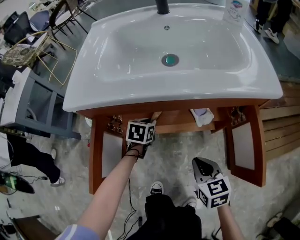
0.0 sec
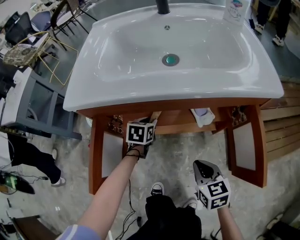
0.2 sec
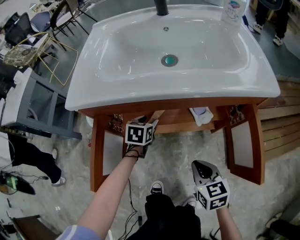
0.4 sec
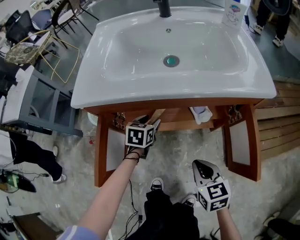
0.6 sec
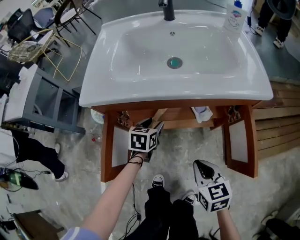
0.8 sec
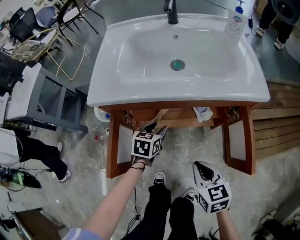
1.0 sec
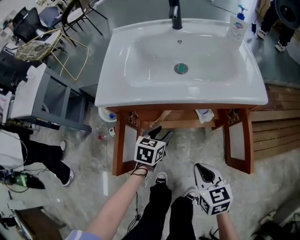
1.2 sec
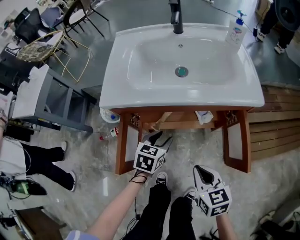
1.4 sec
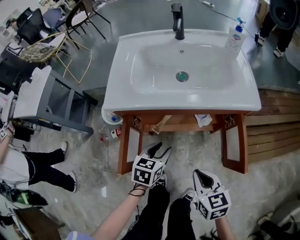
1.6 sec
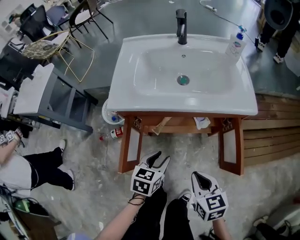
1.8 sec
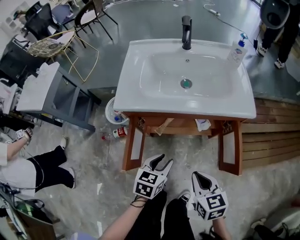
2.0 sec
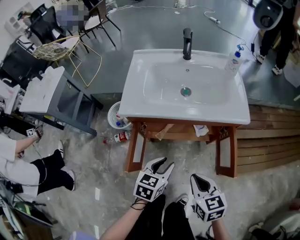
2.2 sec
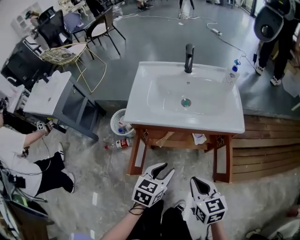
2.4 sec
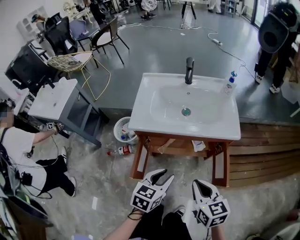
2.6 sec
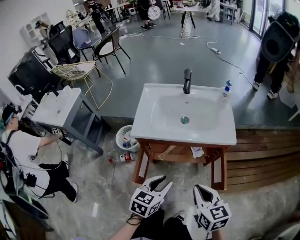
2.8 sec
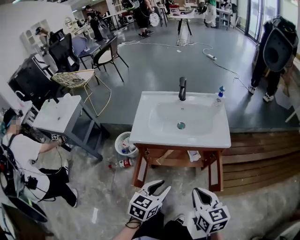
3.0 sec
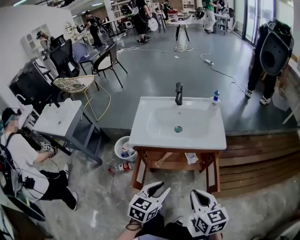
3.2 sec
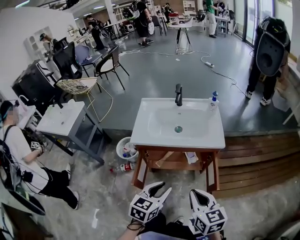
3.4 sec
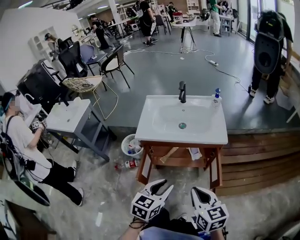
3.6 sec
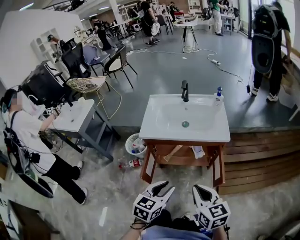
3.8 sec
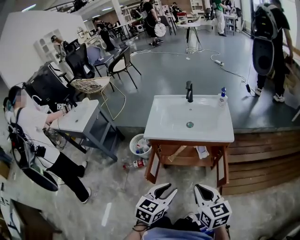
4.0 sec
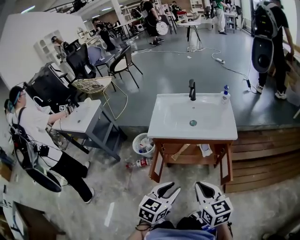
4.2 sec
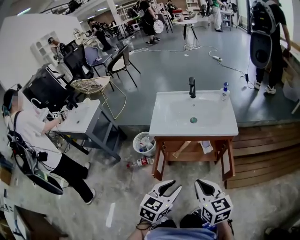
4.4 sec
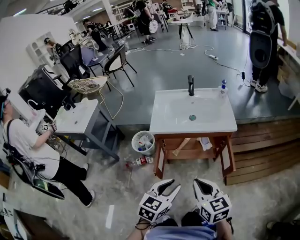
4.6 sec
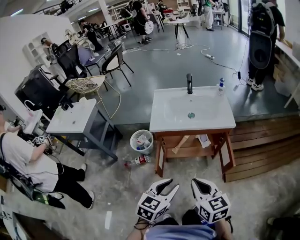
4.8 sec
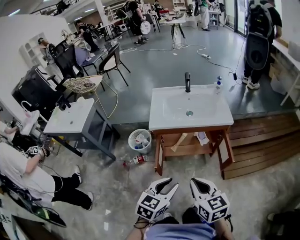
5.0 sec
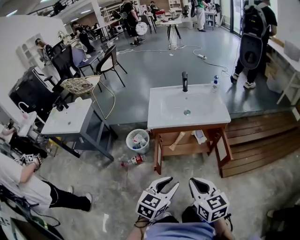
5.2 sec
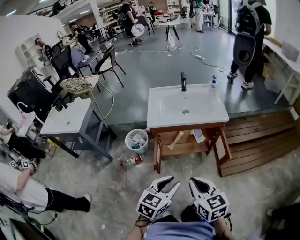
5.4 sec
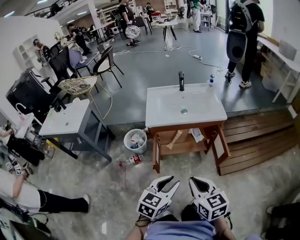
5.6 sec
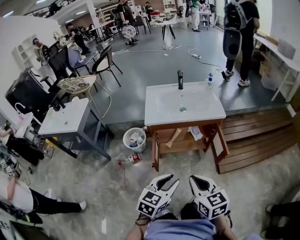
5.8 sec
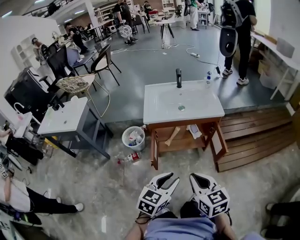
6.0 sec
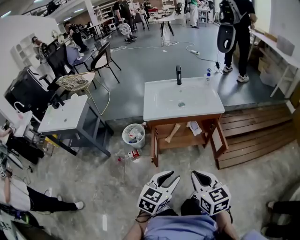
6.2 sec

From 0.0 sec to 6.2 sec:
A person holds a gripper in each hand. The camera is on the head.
From 0.0 sec to 1.6 sec: Both grippers travel together upward and backward, approximately 20 cm. The left gripper opens its fingers.
From 1.6 sec to 3.2 sec: The right gripper heads upward, covering about 25 cm. Meanwhile the left gripper shifts roughly 30 cm upward and backward.
From 3.2 sec to 4.6 sec: The right gripper goes approximately 10 cm to the left and backward, while the left gripper goes approximately 15 cm backward, upward and to the left.
From 4.6 sec to 6.2 sec: Both grippers move backward, some 10 cm.

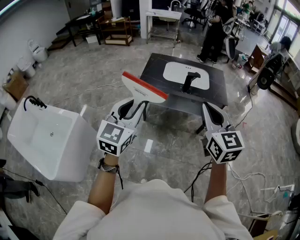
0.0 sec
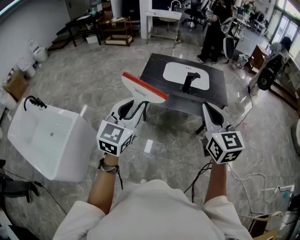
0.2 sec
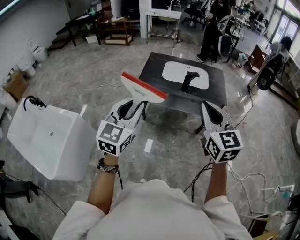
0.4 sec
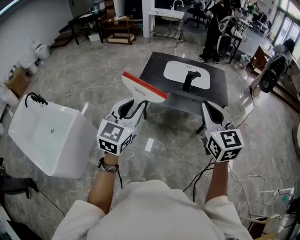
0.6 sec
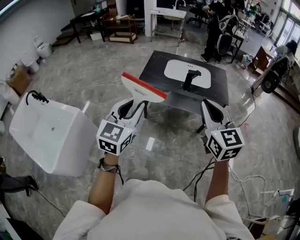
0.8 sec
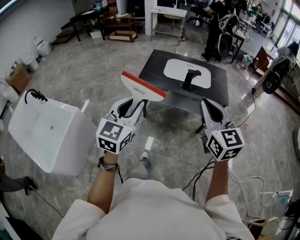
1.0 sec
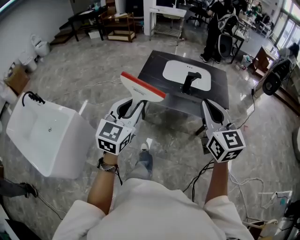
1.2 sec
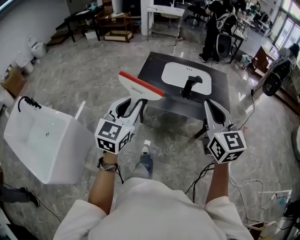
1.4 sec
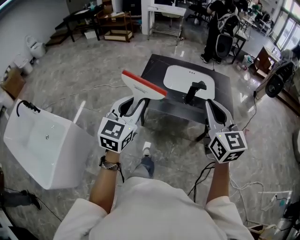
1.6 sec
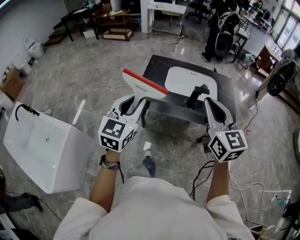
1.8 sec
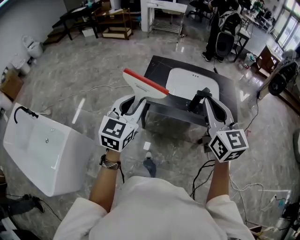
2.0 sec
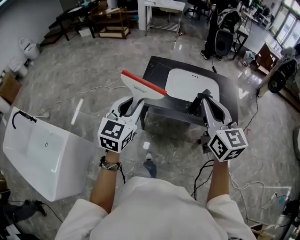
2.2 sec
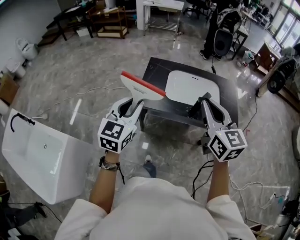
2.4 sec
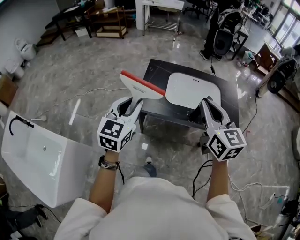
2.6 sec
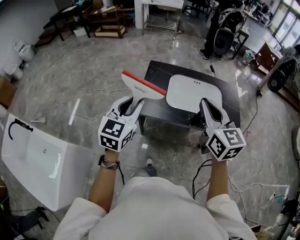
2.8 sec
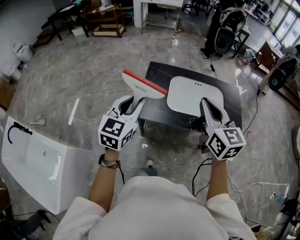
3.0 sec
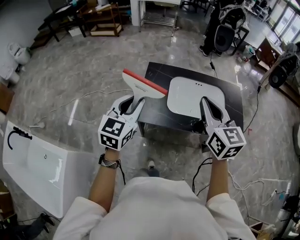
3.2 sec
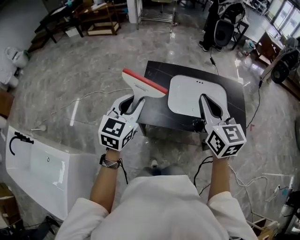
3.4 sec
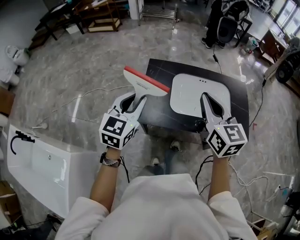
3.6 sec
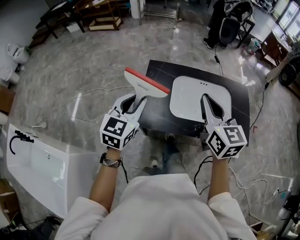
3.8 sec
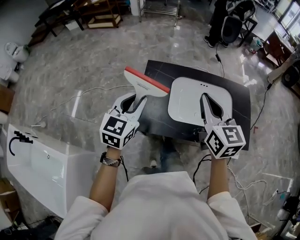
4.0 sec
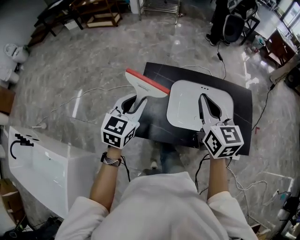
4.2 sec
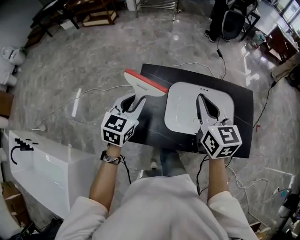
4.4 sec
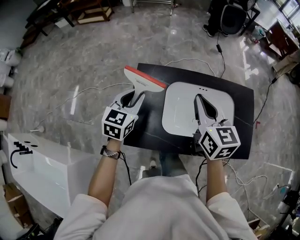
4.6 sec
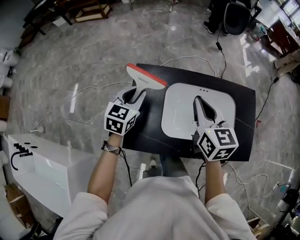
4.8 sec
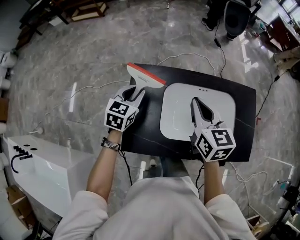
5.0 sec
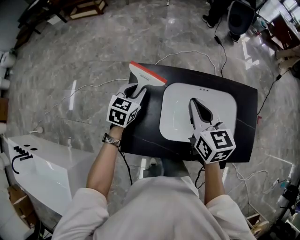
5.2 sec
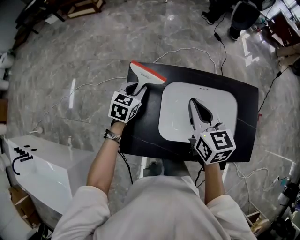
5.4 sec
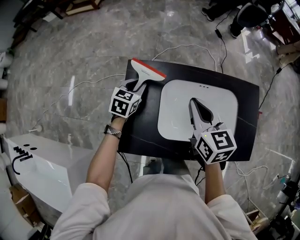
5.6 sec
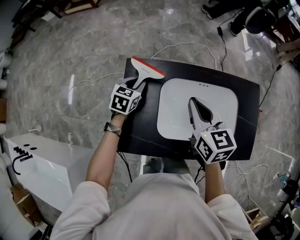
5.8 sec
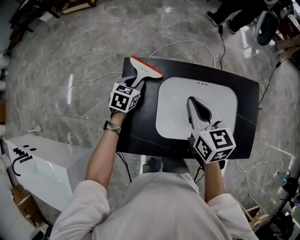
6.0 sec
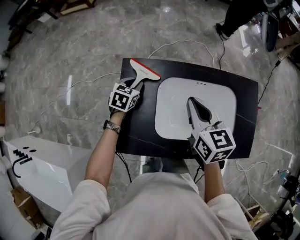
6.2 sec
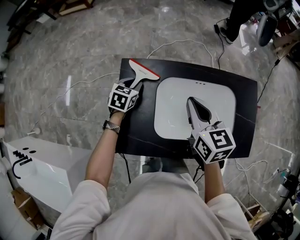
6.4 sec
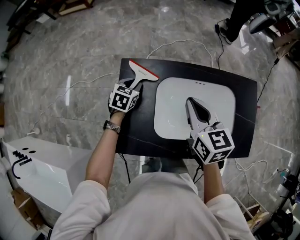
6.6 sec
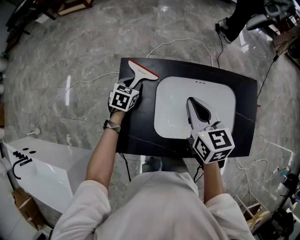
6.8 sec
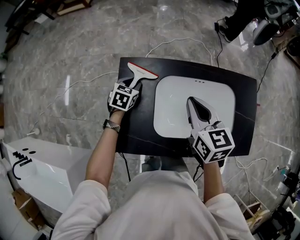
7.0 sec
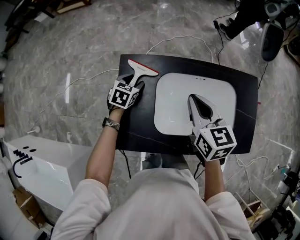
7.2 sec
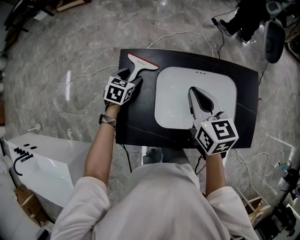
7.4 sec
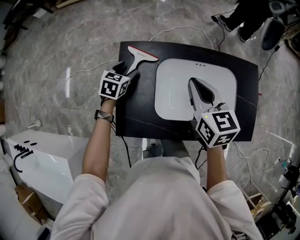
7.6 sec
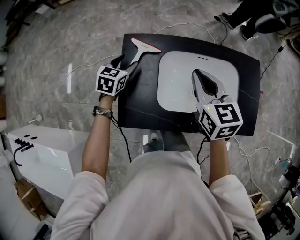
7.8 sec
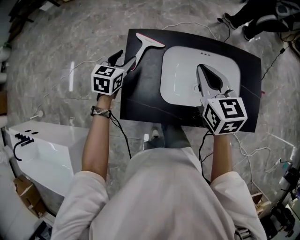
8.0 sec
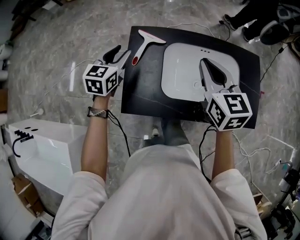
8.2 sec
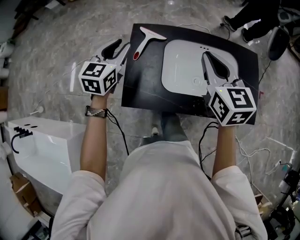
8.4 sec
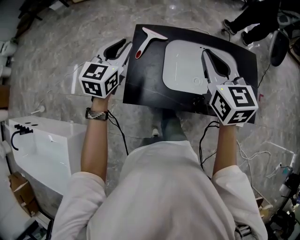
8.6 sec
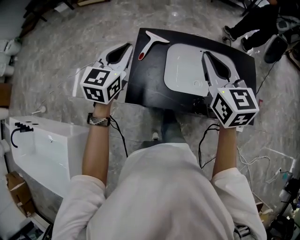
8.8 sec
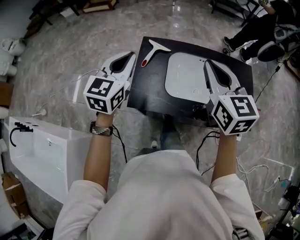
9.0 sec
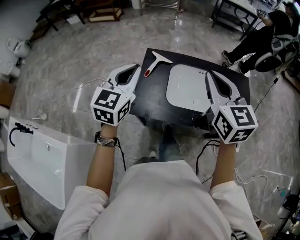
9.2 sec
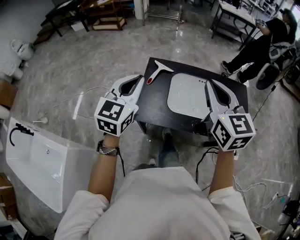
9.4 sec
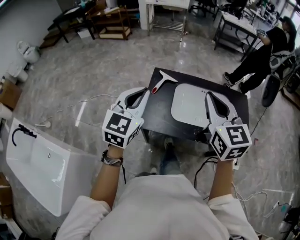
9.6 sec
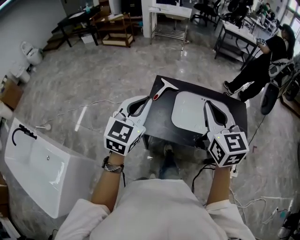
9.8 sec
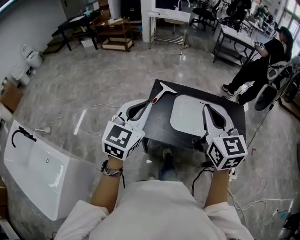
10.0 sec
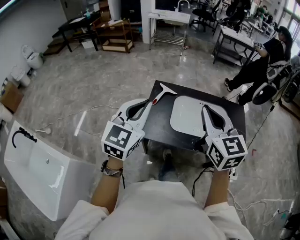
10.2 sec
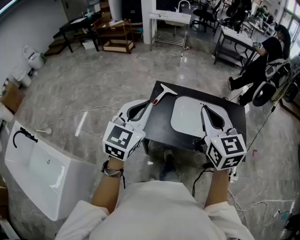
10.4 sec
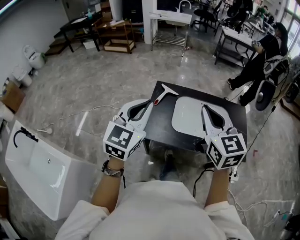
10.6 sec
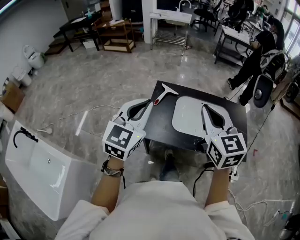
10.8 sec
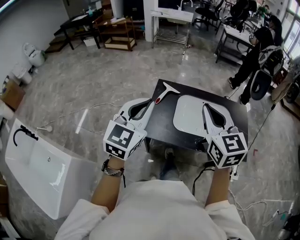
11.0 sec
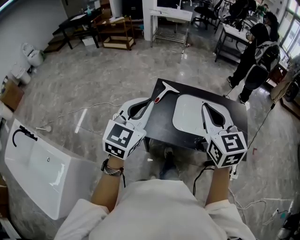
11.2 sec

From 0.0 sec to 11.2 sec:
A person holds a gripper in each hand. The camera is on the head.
From 0.0 sec to 1.6 sec: Both grippers travel together forward, approximately 15 cm.
From 1.6 sec to 3.2 sec: The grippers both shift forward by roughly 30 cm.
From 3.2 sec to 4.8 sec: Both grippers travel together forward and downward, approximately 30 cm.
From 4.8 sec to 6.4 sec: The right gripper travels downward by about 5 cm; the left gripper shifts some 20 cm downward and forward.
From 6.4 sec to 8.0 sec: The right gripper moves some 5 cm. The left gripper travels upward and backward by some 10 cm, and opens.
From 8.0 sec to 9.6 sec: The left gripper travels upward and backward by some 35 cm, rotates roughly 30 degrees, and closes its fingers. The right gripper moves backward and upward, roughly 25 cm.
From 9.6 sec to 11.2 sec: The grippers make only small movements.

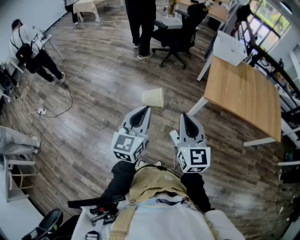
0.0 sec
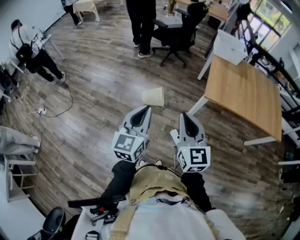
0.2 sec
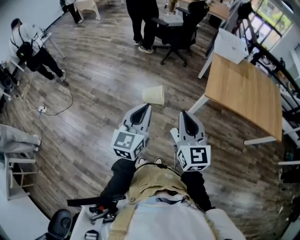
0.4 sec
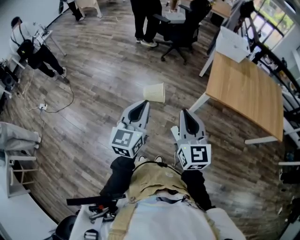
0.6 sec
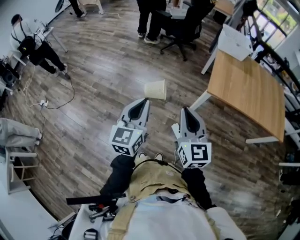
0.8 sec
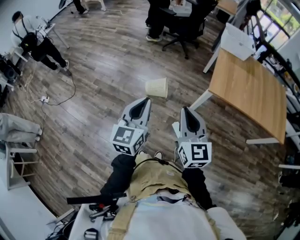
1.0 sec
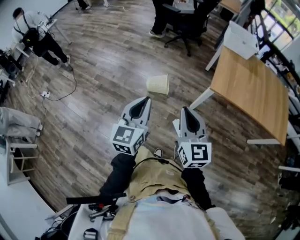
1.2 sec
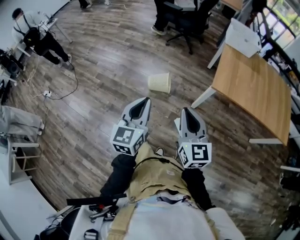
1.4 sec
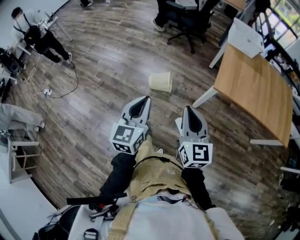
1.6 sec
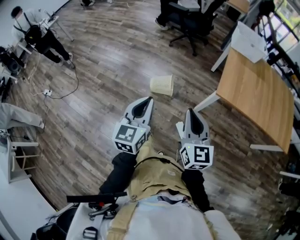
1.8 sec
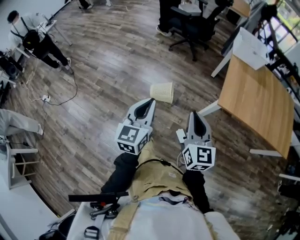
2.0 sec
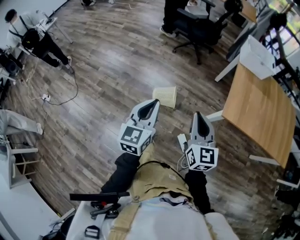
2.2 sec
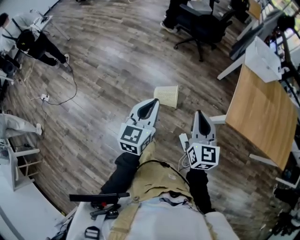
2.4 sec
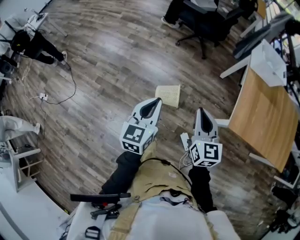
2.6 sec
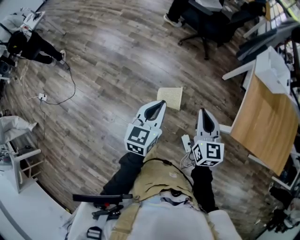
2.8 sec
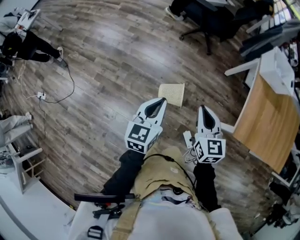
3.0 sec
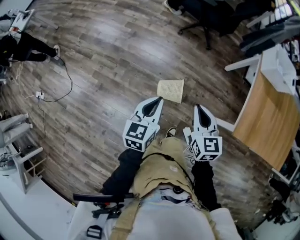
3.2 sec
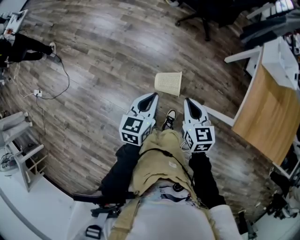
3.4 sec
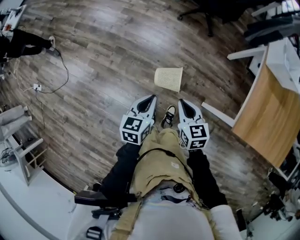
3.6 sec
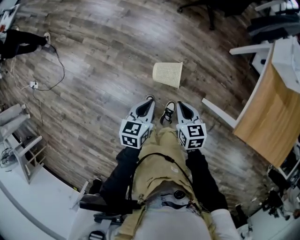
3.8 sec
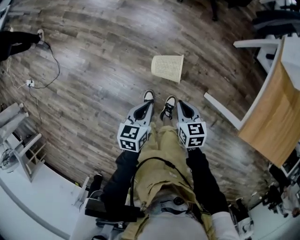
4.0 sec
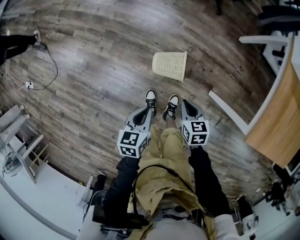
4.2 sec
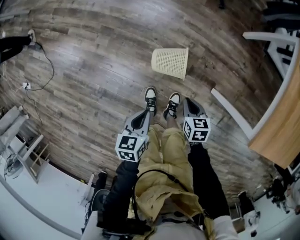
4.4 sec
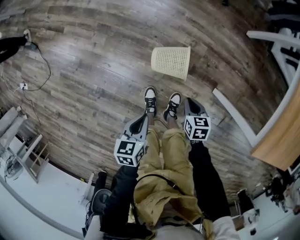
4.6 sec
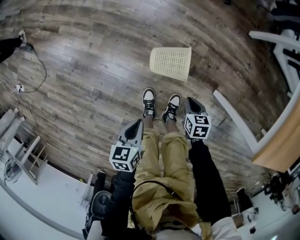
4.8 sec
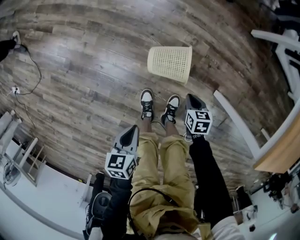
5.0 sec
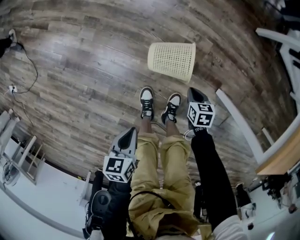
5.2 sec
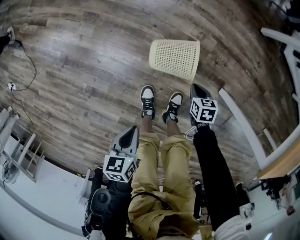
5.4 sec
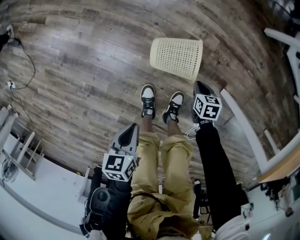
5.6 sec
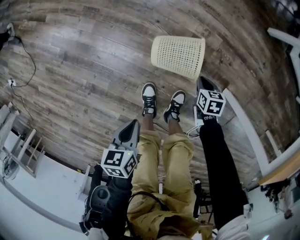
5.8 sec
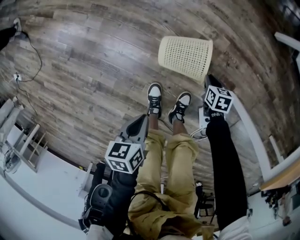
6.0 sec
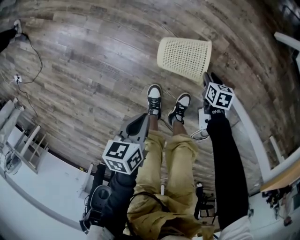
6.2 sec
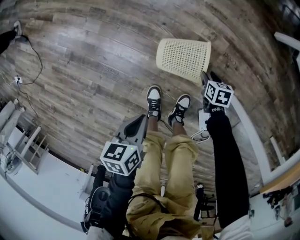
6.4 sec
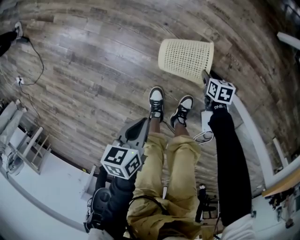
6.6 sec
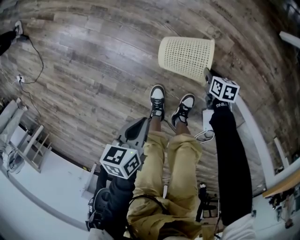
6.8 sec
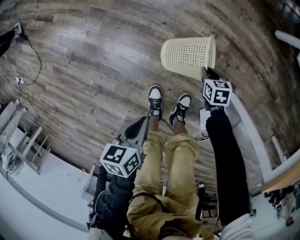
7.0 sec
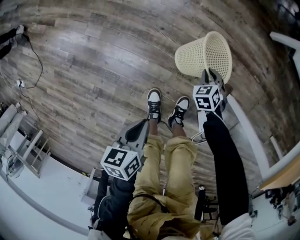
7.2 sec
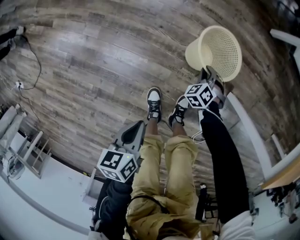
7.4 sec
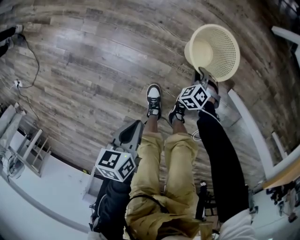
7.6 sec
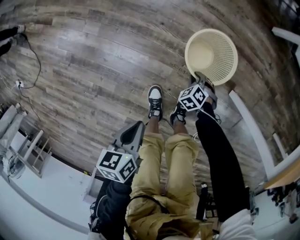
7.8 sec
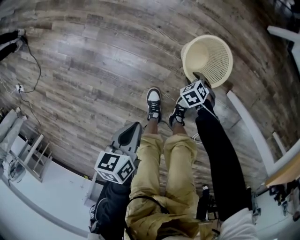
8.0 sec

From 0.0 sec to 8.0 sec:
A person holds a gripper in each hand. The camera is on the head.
From 0.0 sec to 1.6 sec: The two grippers go about 5 cm downward.
From 1.6 sec to 3.2 sec: Both grippers are carried forward and to the left, about 40 cm. The right gripper changes its angle by some 20 degrees.
From 3.2 sec to 4.8 sec: The two grippers go about 50 cm downward. The left gripper tilts its fingers some 30 degrees downward. The right gripper tips its fingers downward by about 40 degrees.
From 4.8 sec to 6.4 sec: The left gripper heads downward, covering about 10 cm, while the right gripper heads downward, covering approximately 20 cm, and opens its fingers.
From 6.4 sec to 8.0 sec: The right gripper goes upward and returns, approximately 5 cm each way, and rolls counterclockwise, seen from behind, by approximately 40 degrees.
